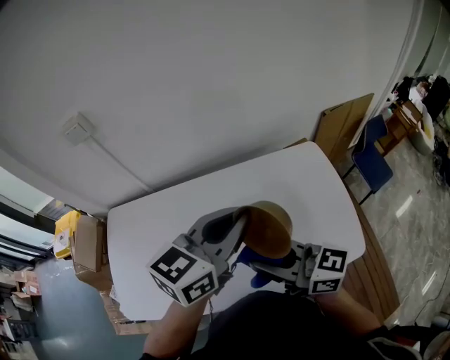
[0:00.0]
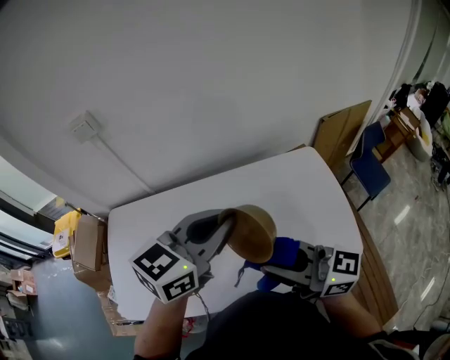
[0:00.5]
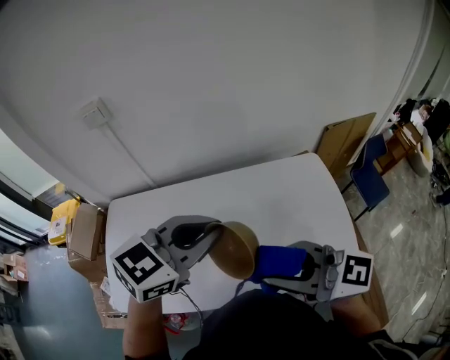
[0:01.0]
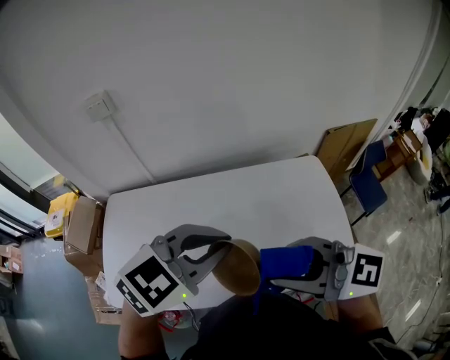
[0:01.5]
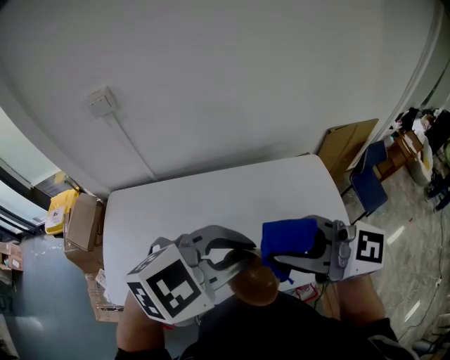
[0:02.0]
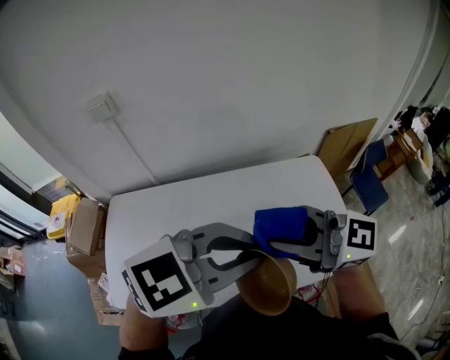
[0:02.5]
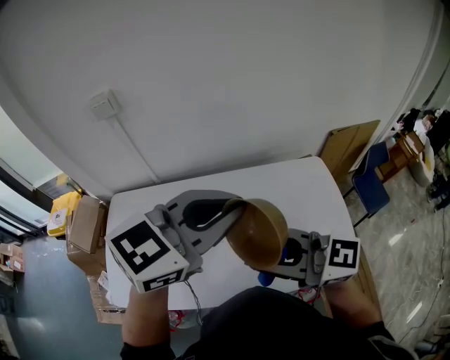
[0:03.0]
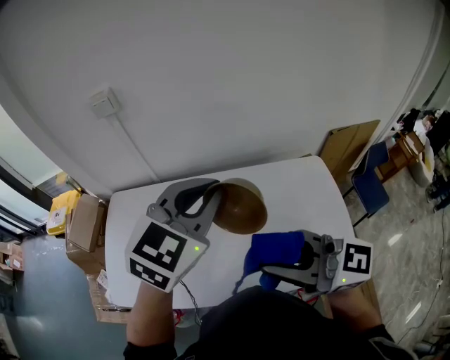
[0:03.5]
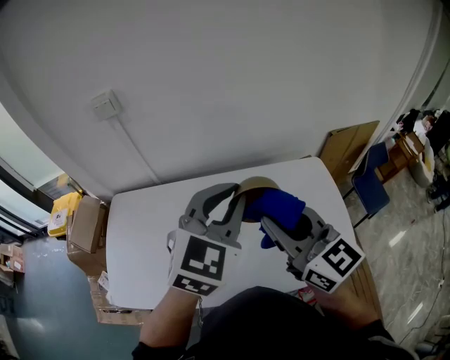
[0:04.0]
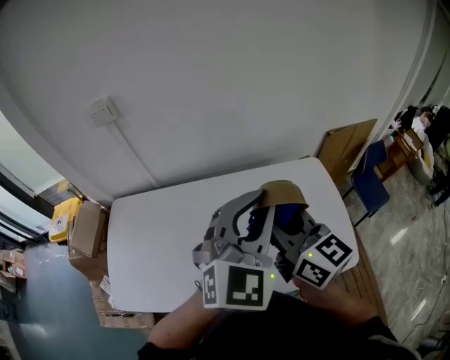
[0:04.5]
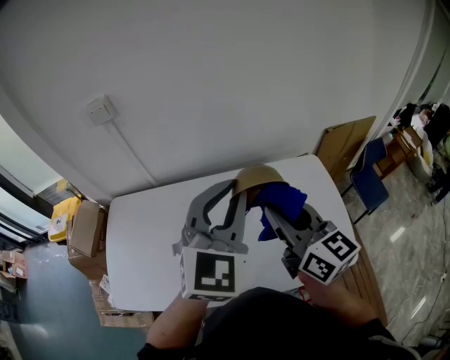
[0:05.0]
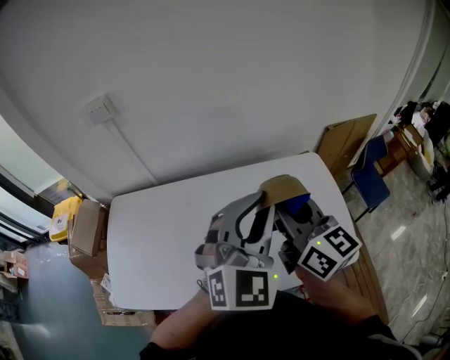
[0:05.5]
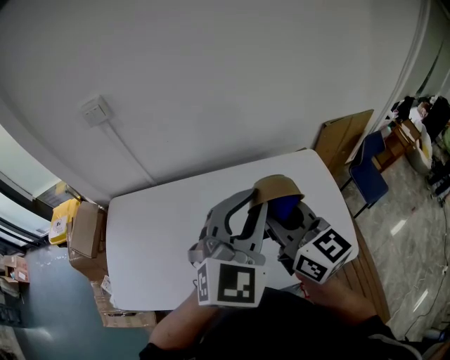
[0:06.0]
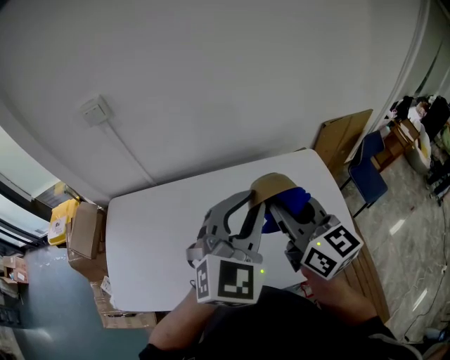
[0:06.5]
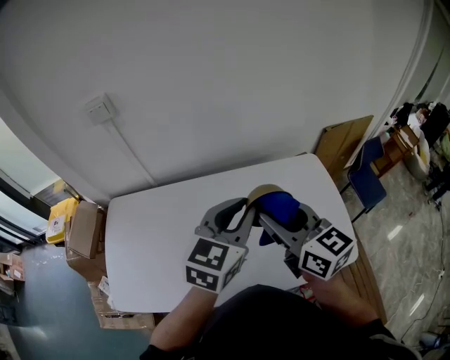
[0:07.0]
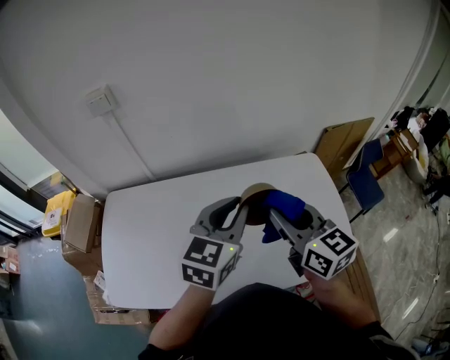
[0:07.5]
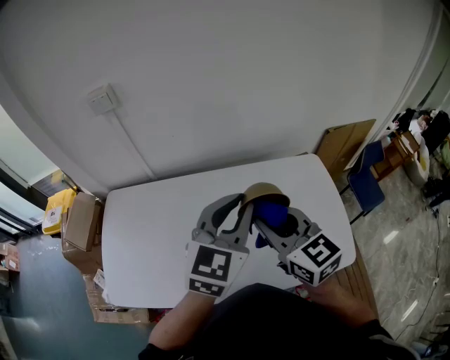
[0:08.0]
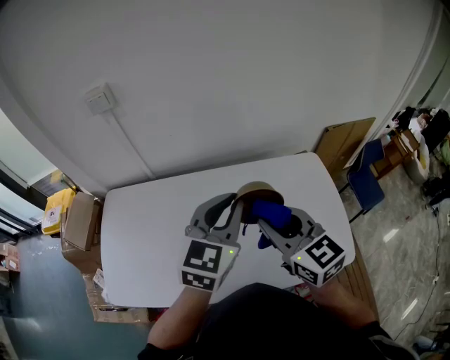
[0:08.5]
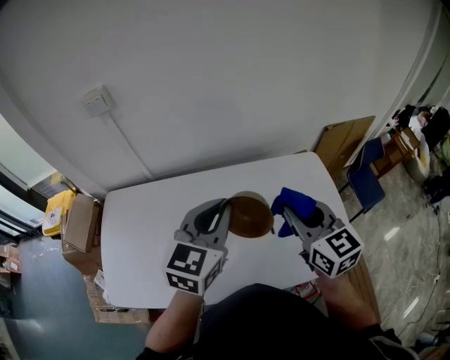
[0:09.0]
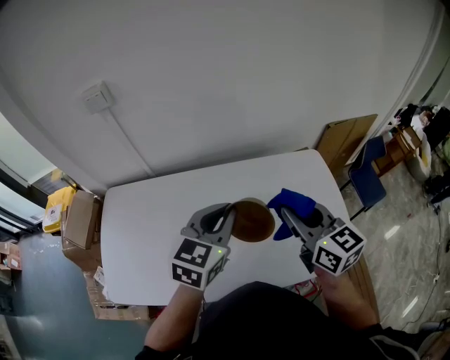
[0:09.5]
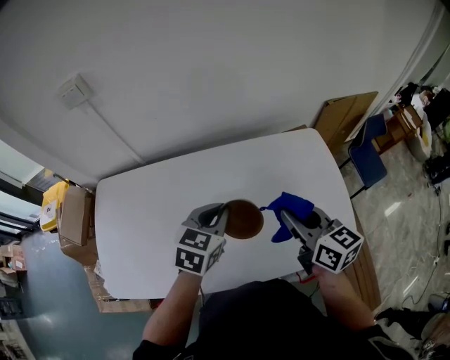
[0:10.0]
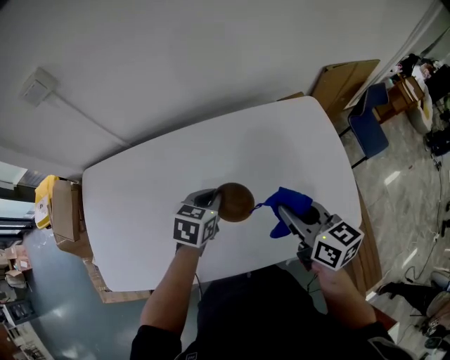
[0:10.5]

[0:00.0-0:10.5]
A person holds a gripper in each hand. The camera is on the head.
0:00.0 to 0:02.0: The left gripper ends up roughly 10 cm from where it was, and changes its angle by about 50 degrees; the right gripper heads upward, covering some 15 cm, and turns by some 30 degrees.
0:02.0 to 0:04.0: The left gripper ends up approximately 10 cm from where it was, and changes its angle by about 40 degrees. Meanwhile the right gripper moves approximately 10 cm, and swivels approximately 40 degrees.
0:04.0 to 0:06.5: The left gripper swings left and right, roughly 5 cm each way, with 2 reversals. Meanwhile the right gripper shifts by some 5 cm.
0:06.5 to 0:08.5: The two grippers go about 5 cm downward. The left gripper swivels approximately 20 degrees.
0:08.5 to 0:10.5: The right gripper shifts about 20 cm downward and to the right, and swivels roughly 30 degrees, while the left gripper moves downward, some 25 cm, and tips its fingers downward by approximately 30 degrees.

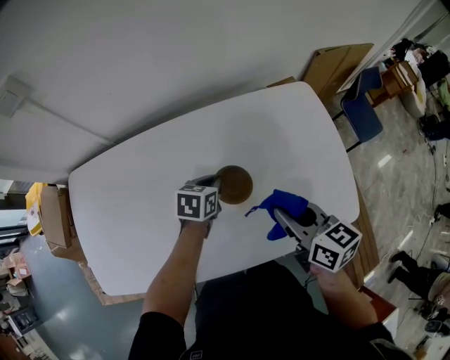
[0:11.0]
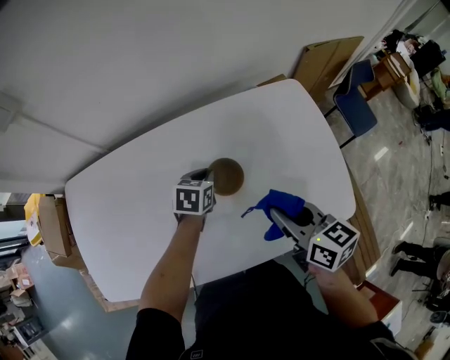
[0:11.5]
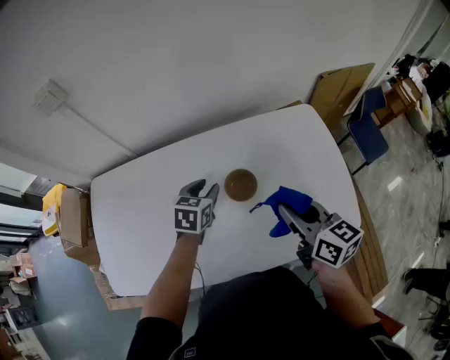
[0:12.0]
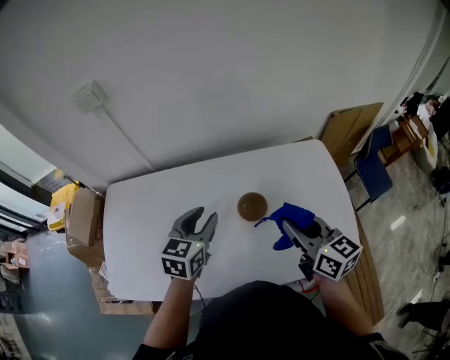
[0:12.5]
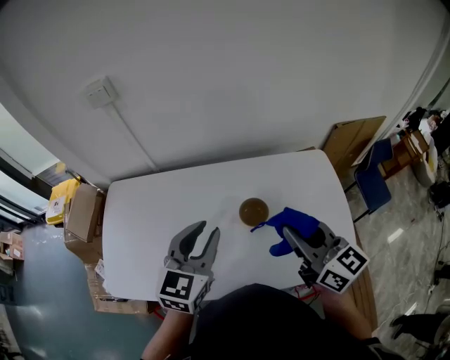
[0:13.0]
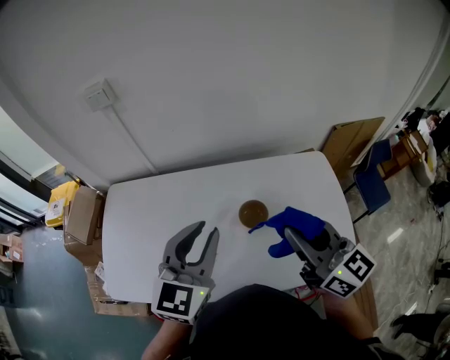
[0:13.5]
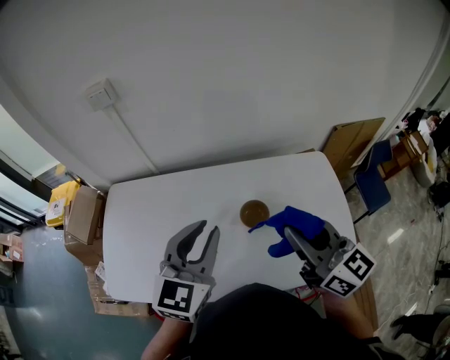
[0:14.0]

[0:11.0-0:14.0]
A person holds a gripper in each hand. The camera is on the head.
0:11.0 to 0:12.5: The left gripper heads upward and to the left, covering approximately 20 cm, turns by some 30 degrees, and opens its fingers; the right gripper travels upward by about 10 cm.
0:12.5 to 0:14.0: Both grippers travel together upward, approximately 10 cm.

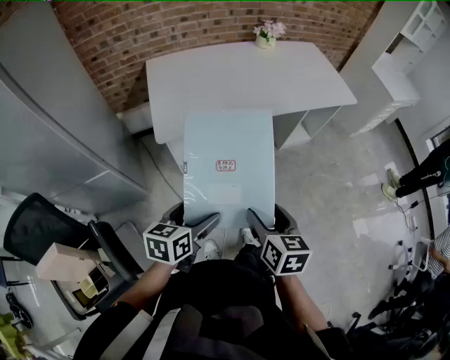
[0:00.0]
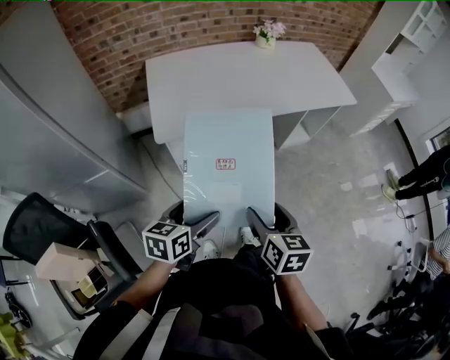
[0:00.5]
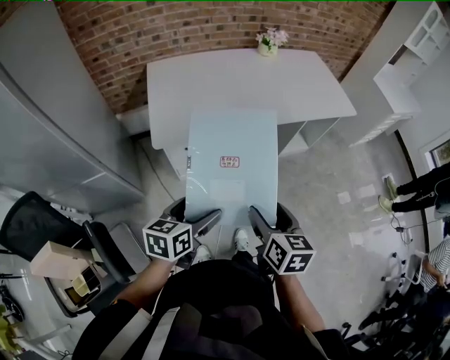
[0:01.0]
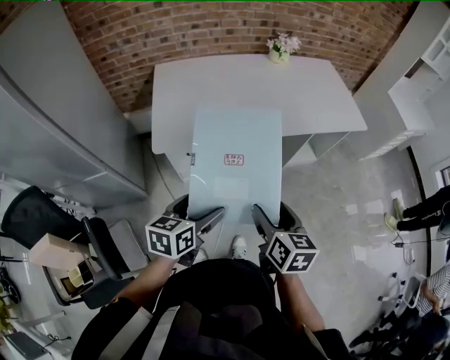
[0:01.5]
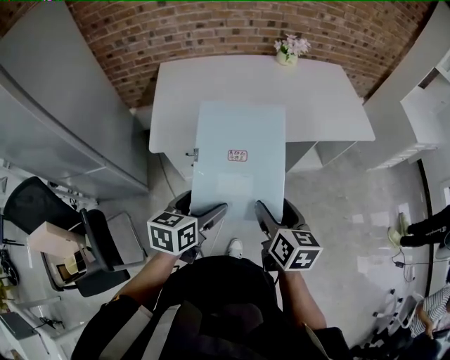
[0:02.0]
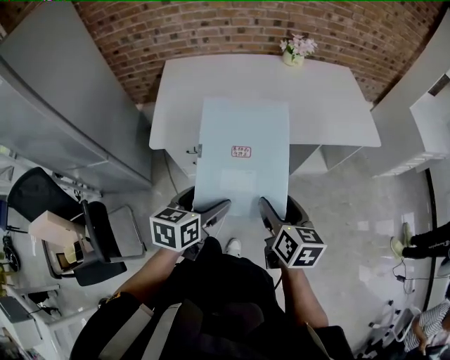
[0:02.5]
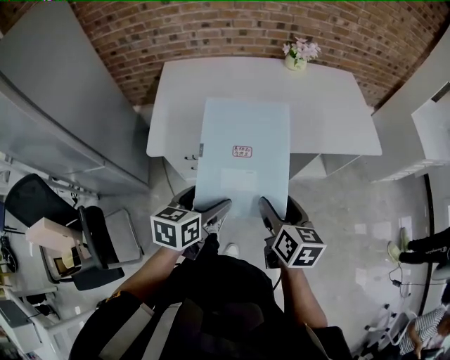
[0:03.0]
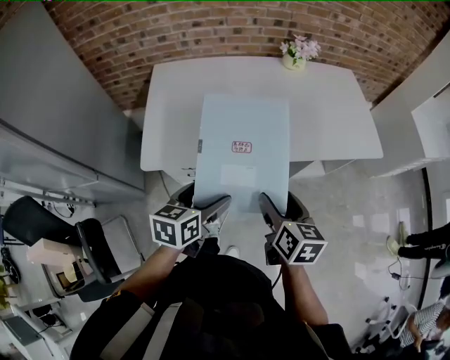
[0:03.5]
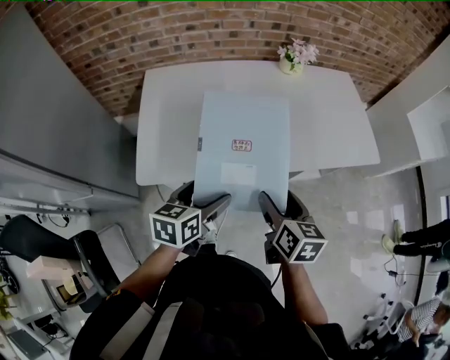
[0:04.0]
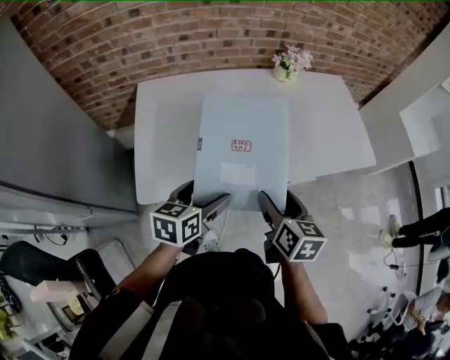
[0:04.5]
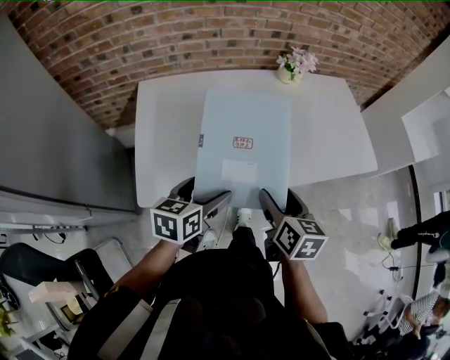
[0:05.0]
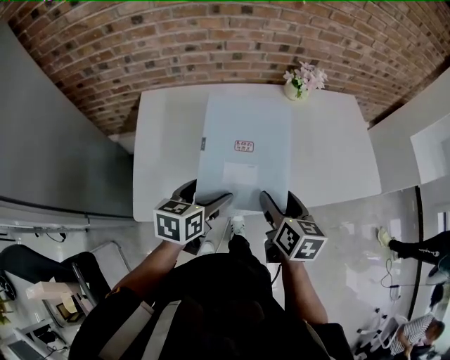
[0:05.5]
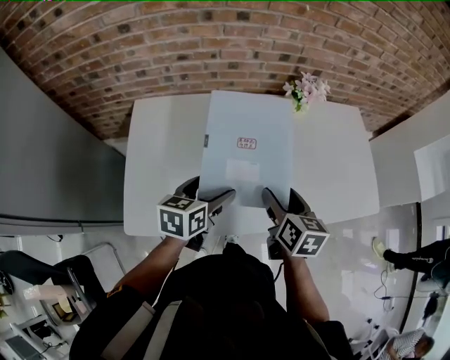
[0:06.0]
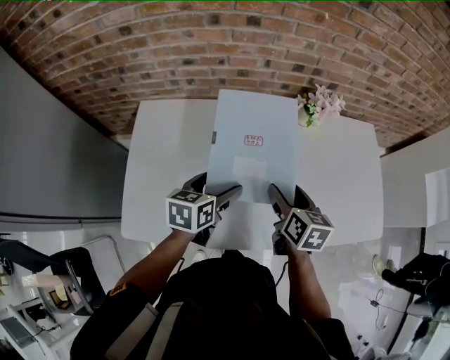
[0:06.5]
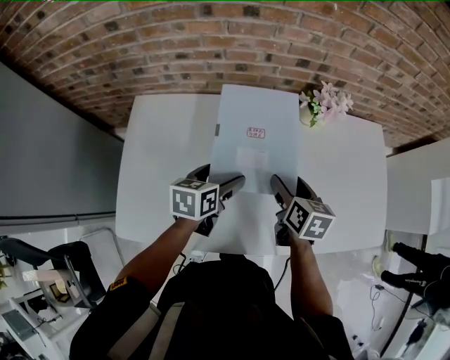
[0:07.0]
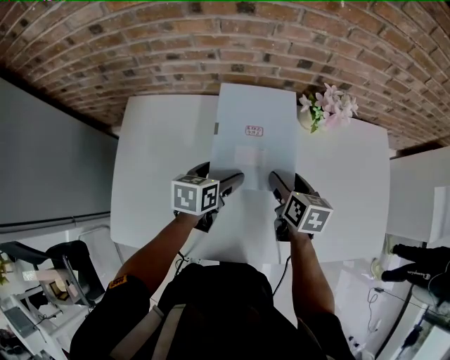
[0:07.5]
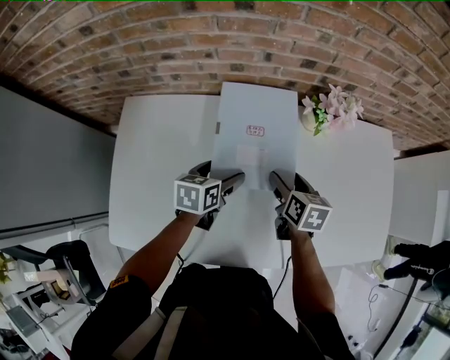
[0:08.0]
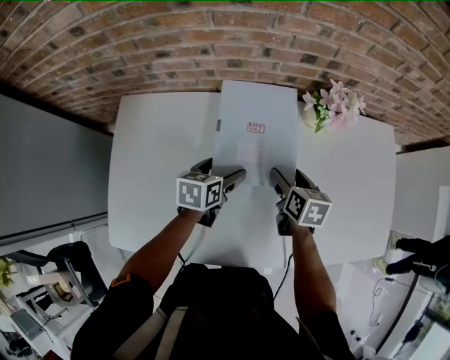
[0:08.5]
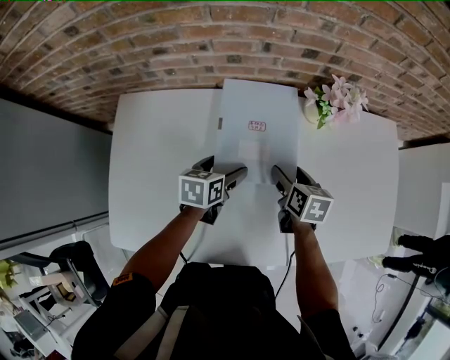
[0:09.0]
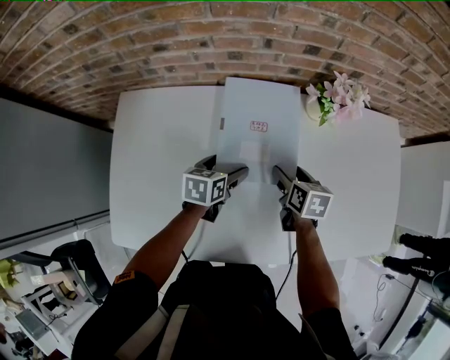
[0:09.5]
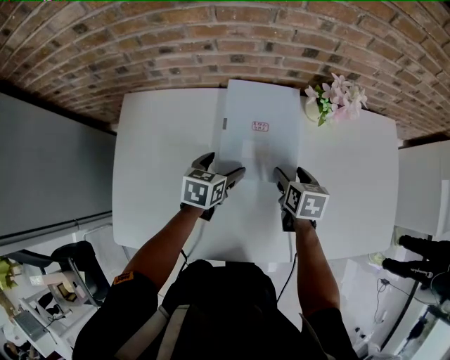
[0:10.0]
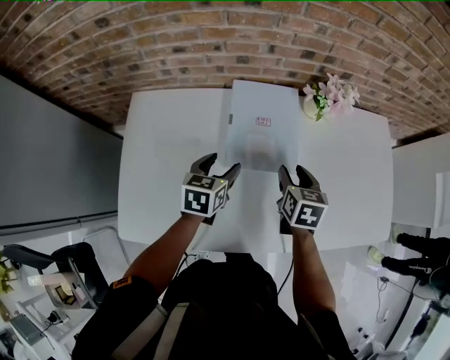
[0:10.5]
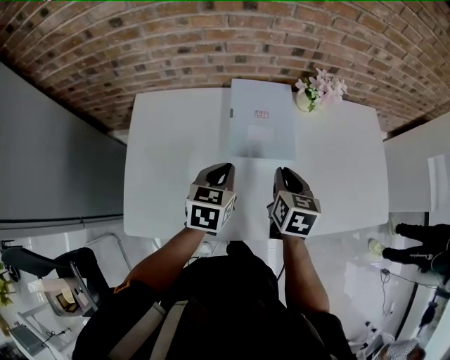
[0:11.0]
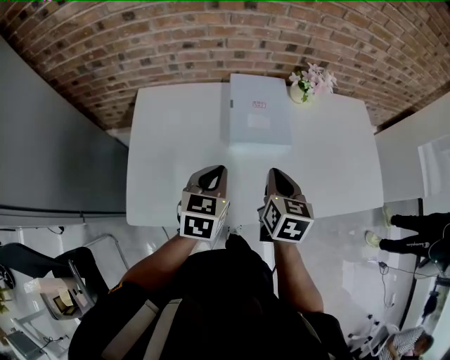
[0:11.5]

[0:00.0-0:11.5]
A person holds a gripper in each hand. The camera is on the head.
0:00.0 to 0:02.0: The grippers both shift forward and to the right by approximately 20 cm.
0:02.0 to 0:04.0: The grippers both shift forward by about 20 cm.
0:04.0 to 0:06.0: The two grippers go some 25 cm forward.
0:06.0 to 0:07.5: Both grippers travel together forward and downward, approximately 20 cm.
0:07.5 to 0:09.5: The two grippers go some 10 cm downward.
0:09.5 to 0:11.5: The two grippers go approximately 25 cm backward and upward. The left gripper turns by roughly 30 degrees, and closes up, while the right gripper rotates roughly 20 degrees, and closes up.

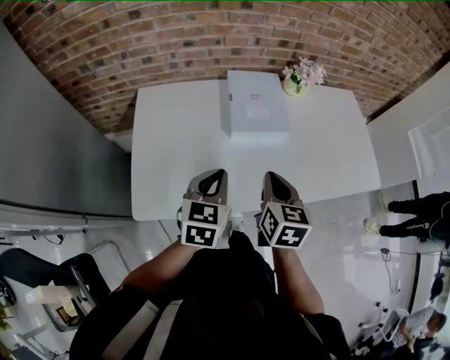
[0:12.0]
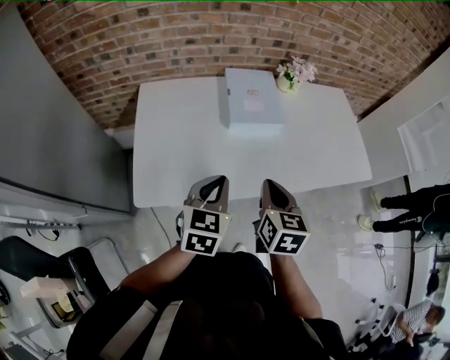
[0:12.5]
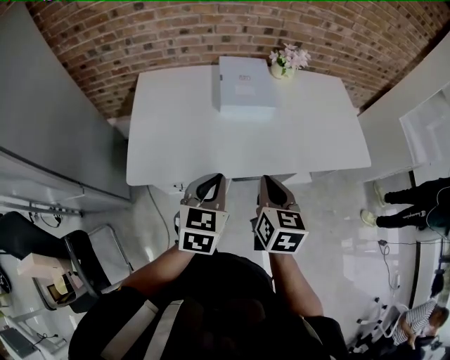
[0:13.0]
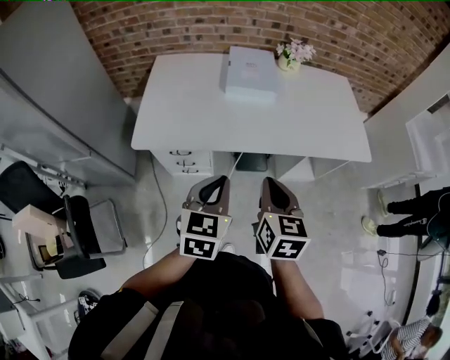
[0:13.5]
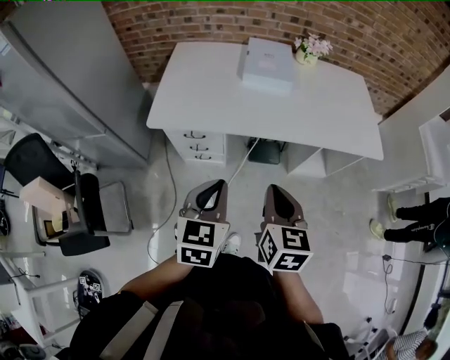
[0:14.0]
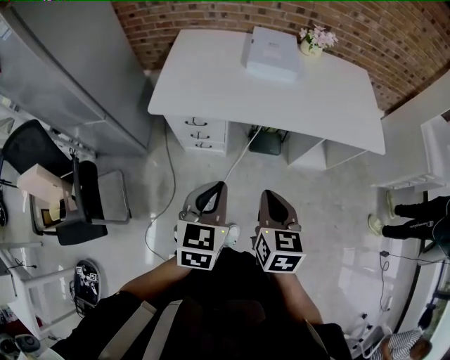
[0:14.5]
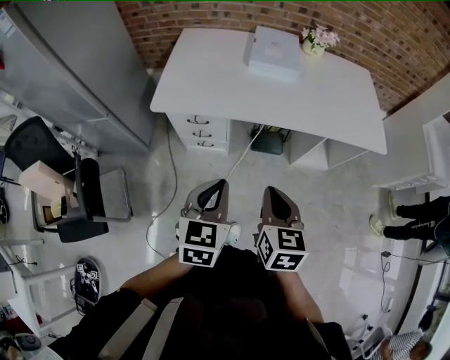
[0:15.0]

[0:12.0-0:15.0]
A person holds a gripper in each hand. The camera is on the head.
0:12.0 to 0:13.5: Both grippers travel together backward and to the right, some 30 cm.
0:13.5 to 0:15.0: Both grippers move backward, approximately 10 cm.
